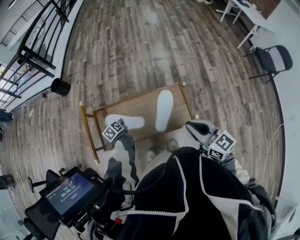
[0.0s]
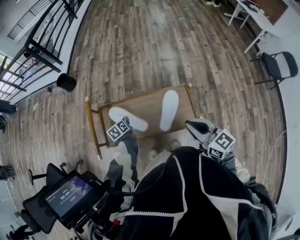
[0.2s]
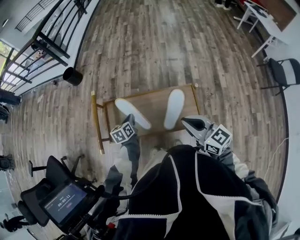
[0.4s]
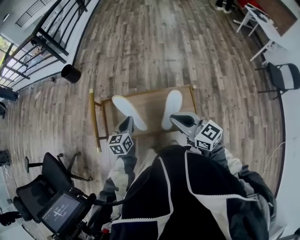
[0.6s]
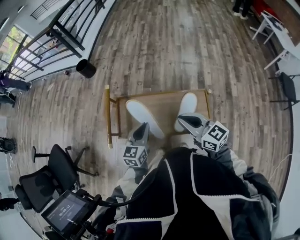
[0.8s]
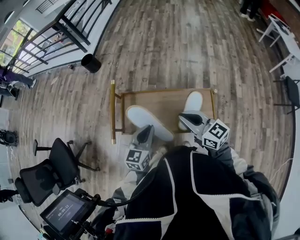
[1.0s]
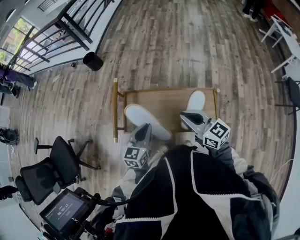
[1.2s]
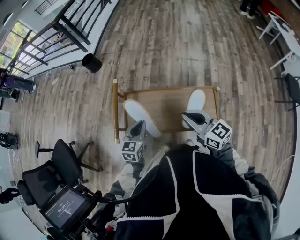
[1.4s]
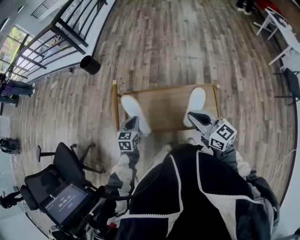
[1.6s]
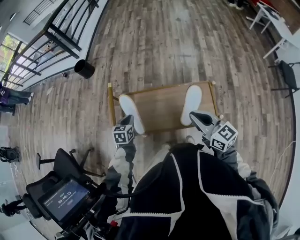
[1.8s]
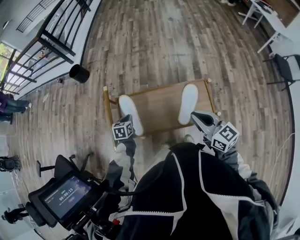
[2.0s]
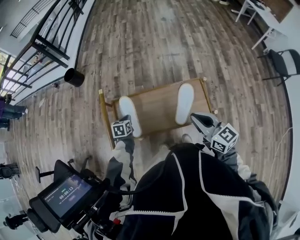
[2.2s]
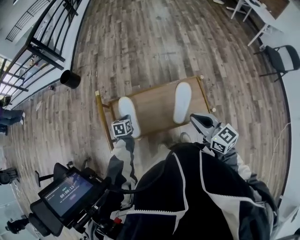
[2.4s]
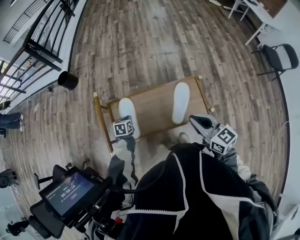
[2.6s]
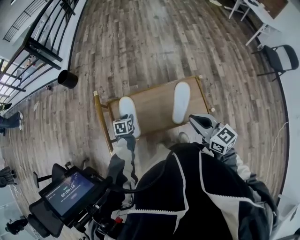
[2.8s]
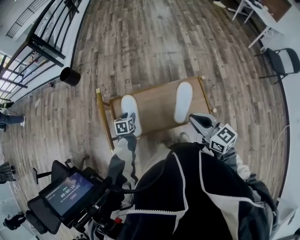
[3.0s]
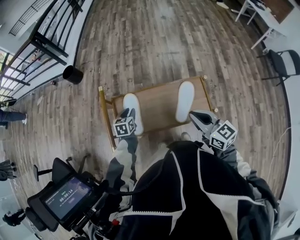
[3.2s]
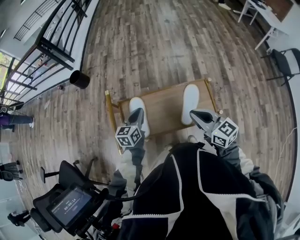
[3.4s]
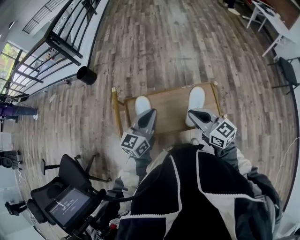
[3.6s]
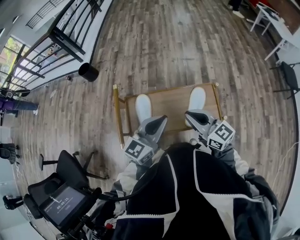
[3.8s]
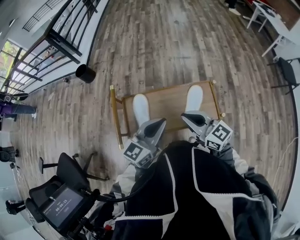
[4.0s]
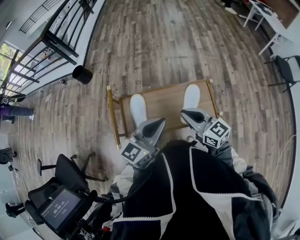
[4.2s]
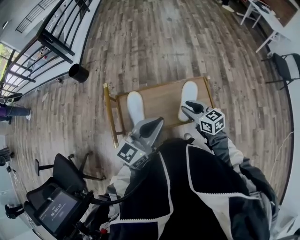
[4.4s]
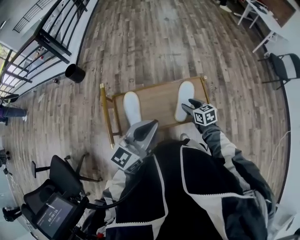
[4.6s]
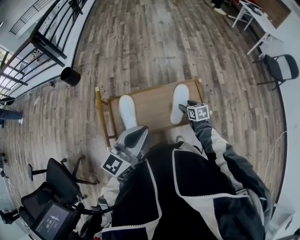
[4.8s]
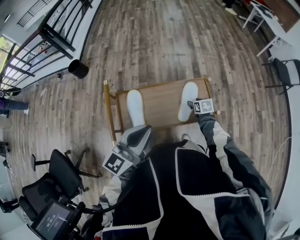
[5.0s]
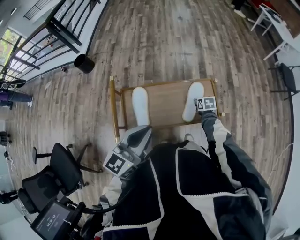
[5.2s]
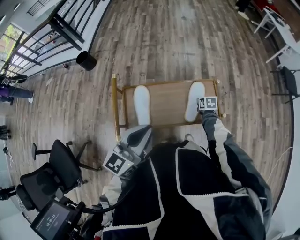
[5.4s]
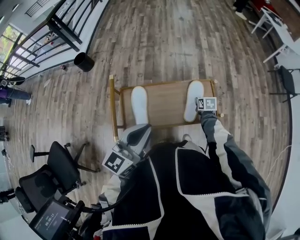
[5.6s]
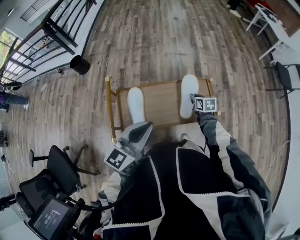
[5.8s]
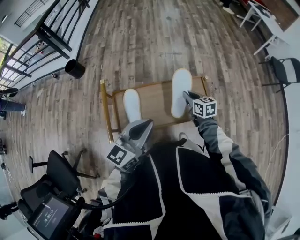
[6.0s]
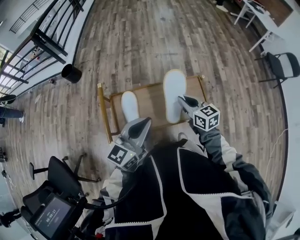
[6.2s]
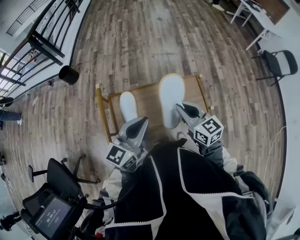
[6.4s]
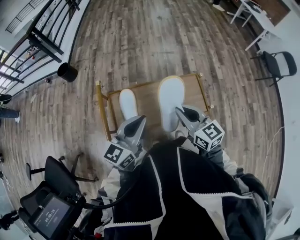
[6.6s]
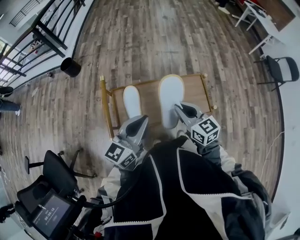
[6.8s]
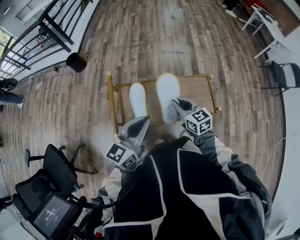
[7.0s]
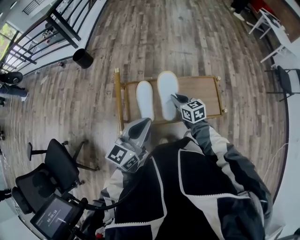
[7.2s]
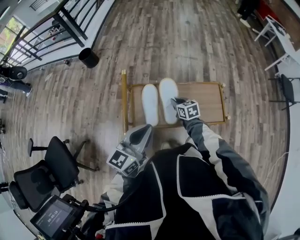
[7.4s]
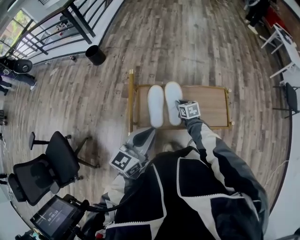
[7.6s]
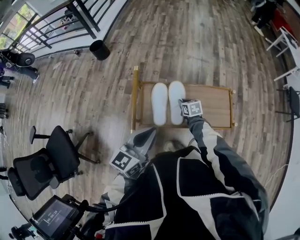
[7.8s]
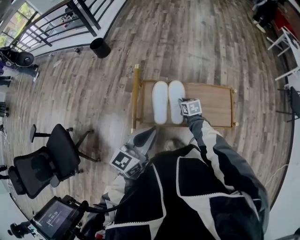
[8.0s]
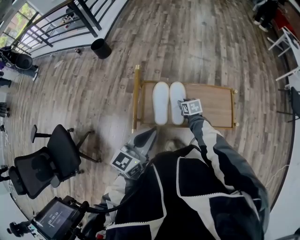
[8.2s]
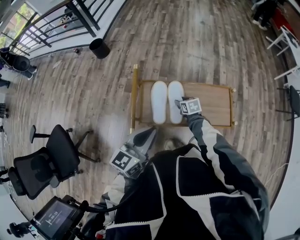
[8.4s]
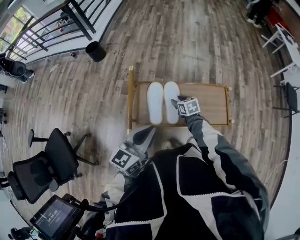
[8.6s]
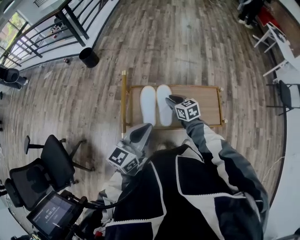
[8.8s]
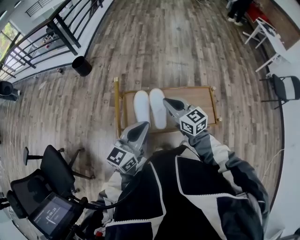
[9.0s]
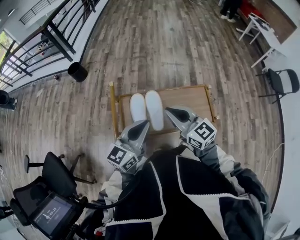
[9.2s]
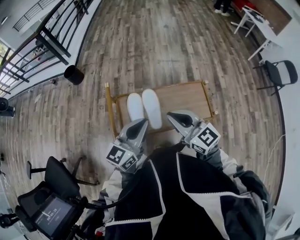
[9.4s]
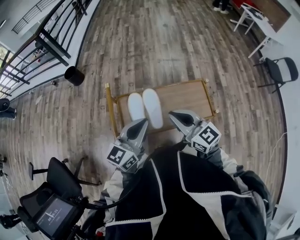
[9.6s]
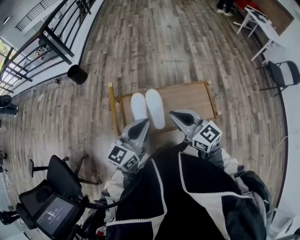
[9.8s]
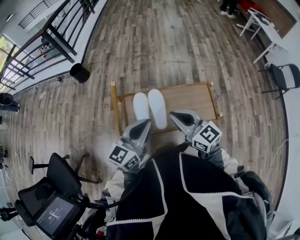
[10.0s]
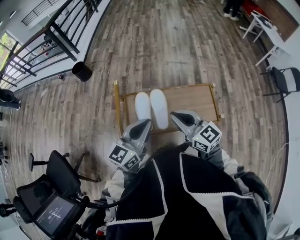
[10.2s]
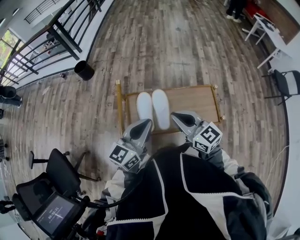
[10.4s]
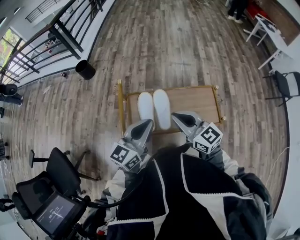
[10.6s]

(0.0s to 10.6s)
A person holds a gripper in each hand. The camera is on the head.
0.0s - 1.6s: The right gripper goes about 15 cm to the left and forward. Meanwhile the left gripper moves upward and to the left, approximately 20 cm, and rotates around the line of its fingers by roughly 40 degrees, clockwise from behind.
1.6s - 3.0s: The left gripper travels downward by some 15 cm, and opens its fingers; the right gripper travels to the right by some 5 cm.
3.0s - 4.6s: The right gripper heads downward and forward, covering some 20 cm, swivels roughly 20 degrees, and opens its fingers, while the left gripper travels upward and to the right by approximately 35 cm, angles its fingers upward, by roughly 50 degrees, and closes.
4.6s - 6.0s: The right gripper reaches about 10 cm downward, then returns, and closes up.
6.0s - 7.6s: The right gripper is displaced to the left and downward by roughly 20 cm, while the left gripper moves to the left, roughly 10 cm.
7.6s - 9.0s: The right gripper is displaced upward by some 25 cm, tips its fingers upward by about 30 degrees, and opens and closes again.
9.0s - 10.6s: The right gripper travels backward and upward by some 10 cm.

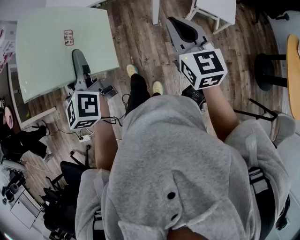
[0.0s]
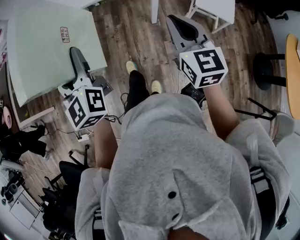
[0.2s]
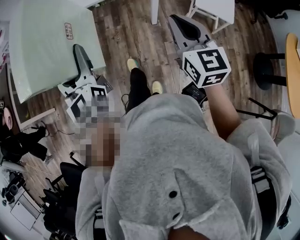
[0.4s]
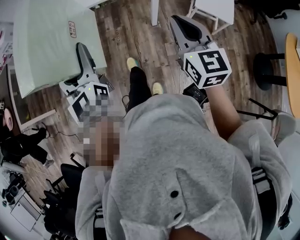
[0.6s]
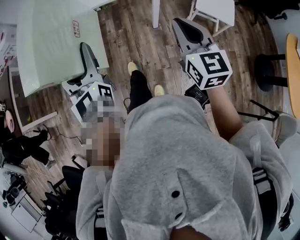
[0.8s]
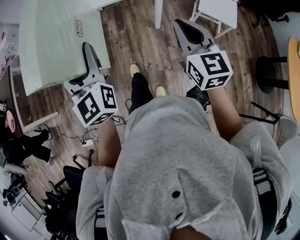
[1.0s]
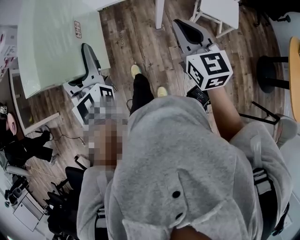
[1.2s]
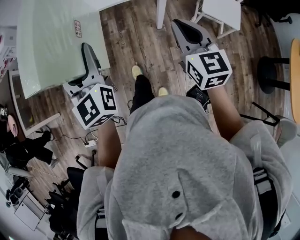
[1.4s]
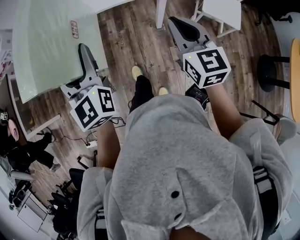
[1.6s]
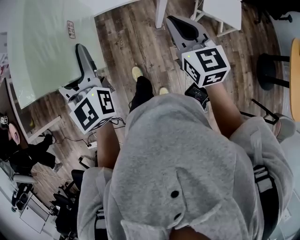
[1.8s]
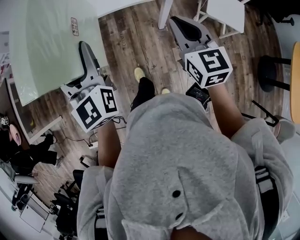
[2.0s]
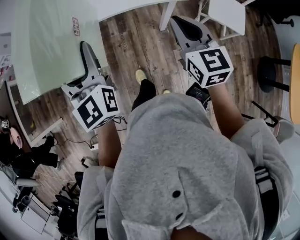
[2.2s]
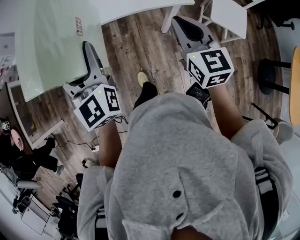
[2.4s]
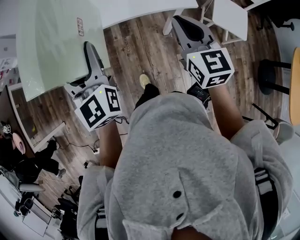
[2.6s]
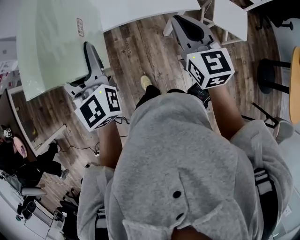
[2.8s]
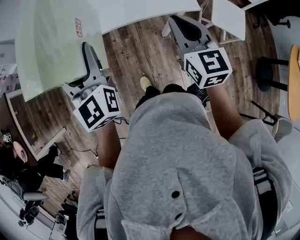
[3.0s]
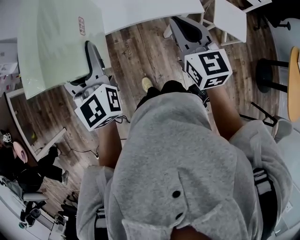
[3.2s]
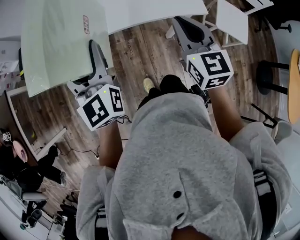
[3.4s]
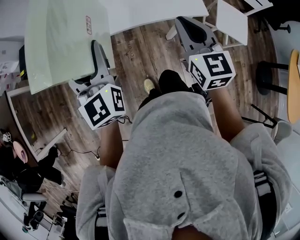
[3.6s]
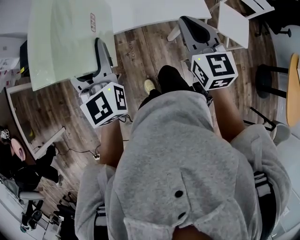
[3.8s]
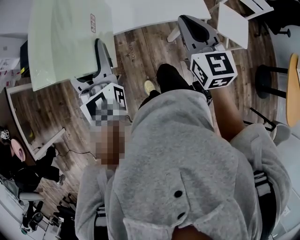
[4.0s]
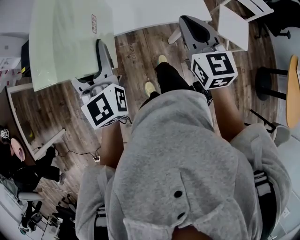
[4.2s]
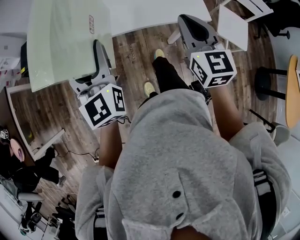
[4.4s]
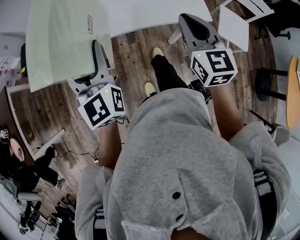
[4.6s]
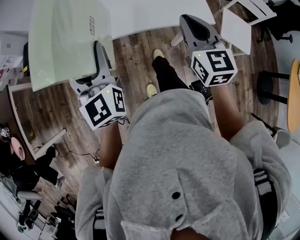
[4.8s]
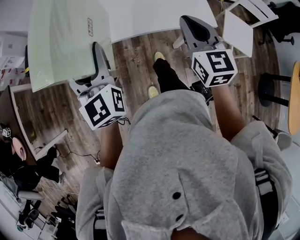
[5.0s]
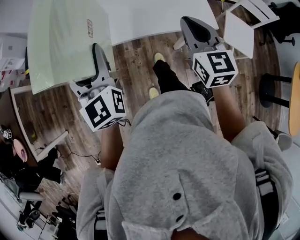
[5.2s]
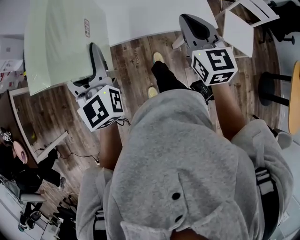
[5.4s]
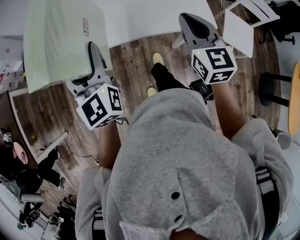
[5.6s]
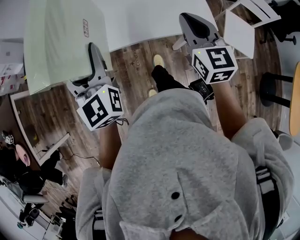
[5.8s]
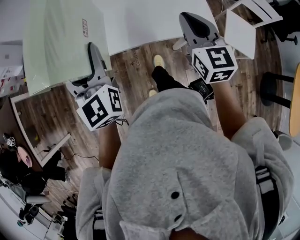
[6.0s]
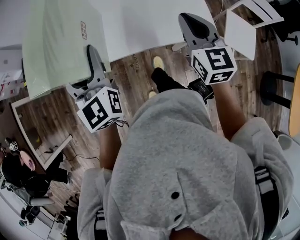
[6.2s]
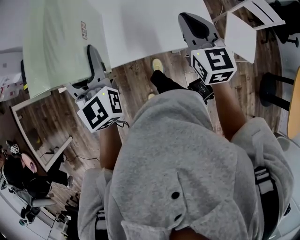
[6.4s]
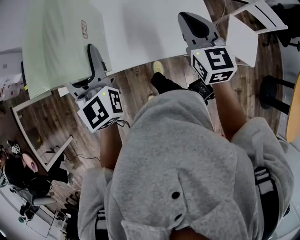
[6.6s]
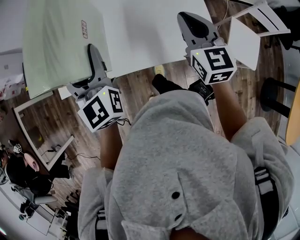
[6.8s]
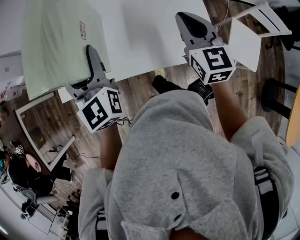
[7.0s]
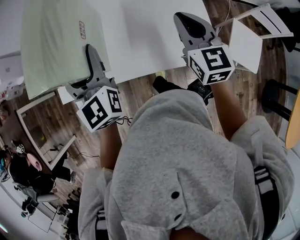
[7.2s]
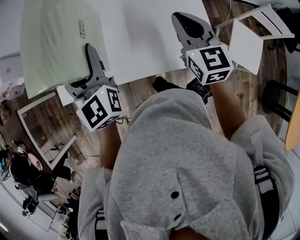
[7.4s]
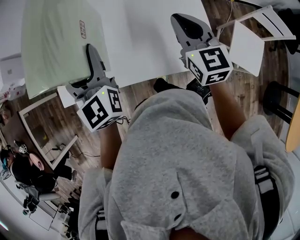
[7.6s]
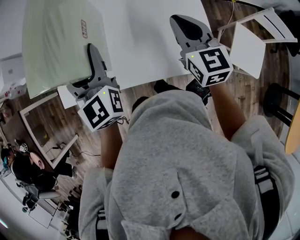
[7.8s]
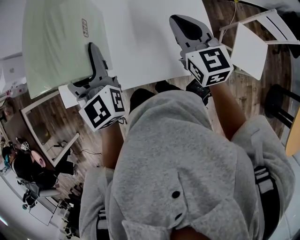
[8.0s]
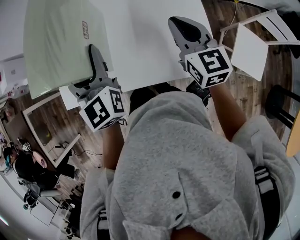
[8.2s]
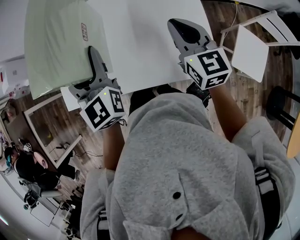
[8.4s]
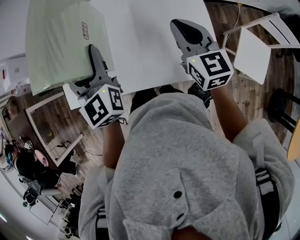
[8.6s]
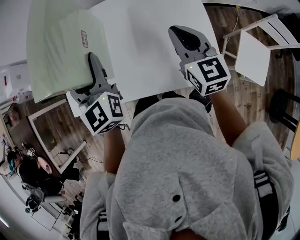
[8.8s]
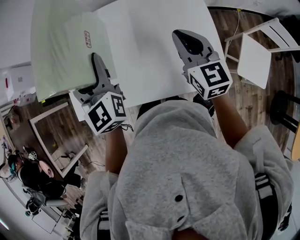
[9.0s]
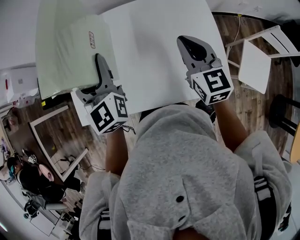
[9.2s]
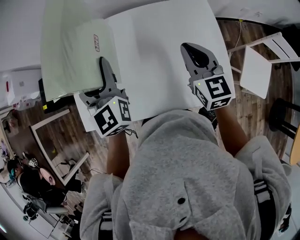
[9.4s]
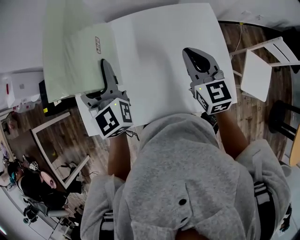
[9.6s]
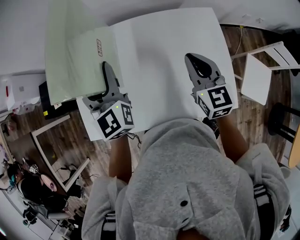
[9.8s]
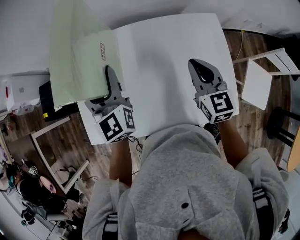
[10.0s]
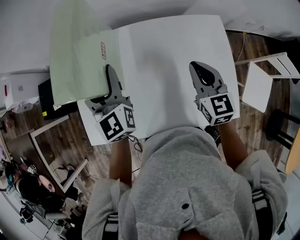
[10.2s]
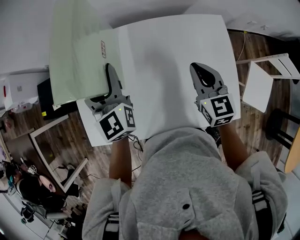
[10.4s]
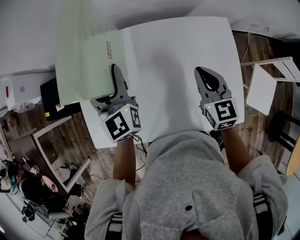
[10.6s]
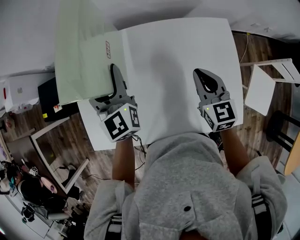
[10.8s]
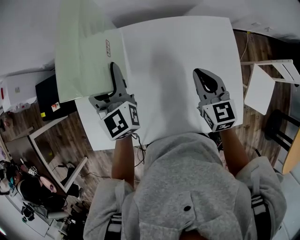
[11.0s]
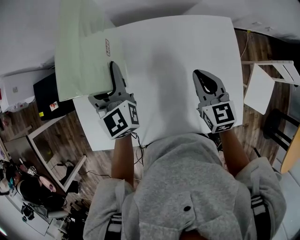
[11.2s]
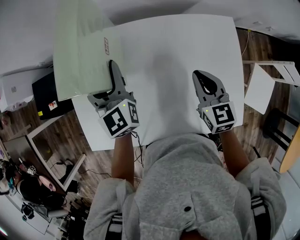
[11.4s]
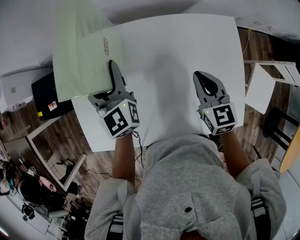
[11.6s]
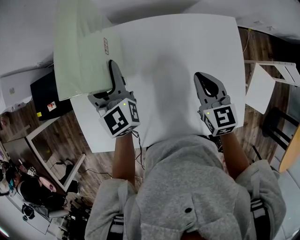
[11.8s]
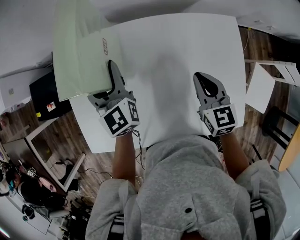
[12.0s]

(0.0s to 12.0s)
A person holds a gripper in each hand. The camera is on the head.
0.0s - 1.6s: Both grippers move forward, roughly 10 cm. The left gripper rotates approximately 30 degrees.
1.6s - 3.0s: The left gripper goes approximately 20 cm forward. The right gripper is displaced forward and to the left by approximately 20 cm.
3.0s - 4.4s: There are only small adjustments of the grippers.
4.4s - 6.0s: The grippers both shift forward by about 10 cm.
6.0s - 7.6s: The two grippers go about 20 cm forward and to the right.
7.6s - 9.0s: The left gripper is displaced forward by approximately 5 cm, while the right gripper ends up some 5 cm from where it was.
9.0s - 10.4s: The left gripper is displaced forward by about 15 cm; the right gripper moves forward and downward, about 10 cm.
10.4s - 12.0s: Both grippers move downward, approximately 5 cm.

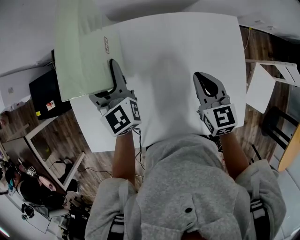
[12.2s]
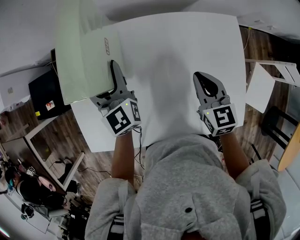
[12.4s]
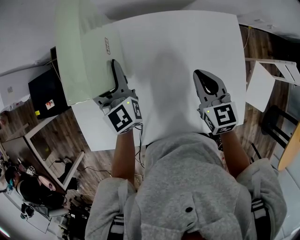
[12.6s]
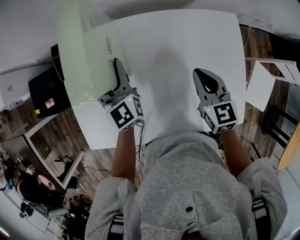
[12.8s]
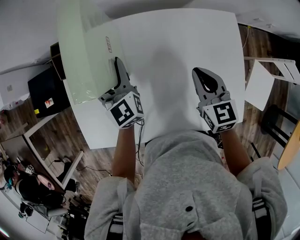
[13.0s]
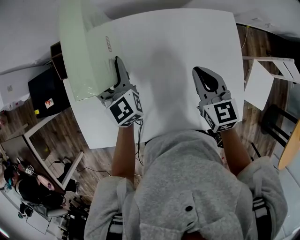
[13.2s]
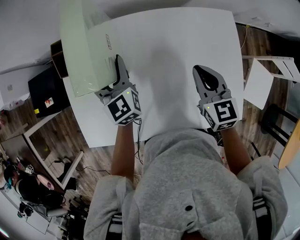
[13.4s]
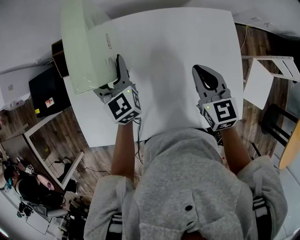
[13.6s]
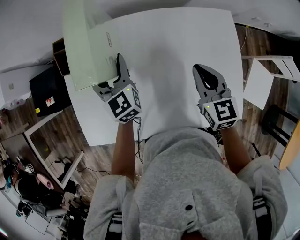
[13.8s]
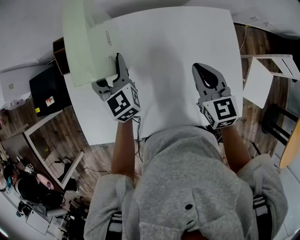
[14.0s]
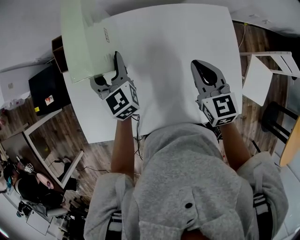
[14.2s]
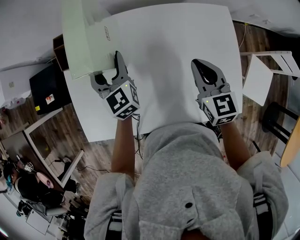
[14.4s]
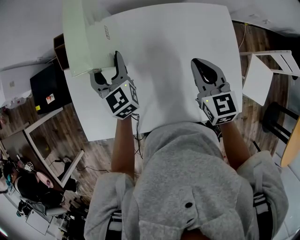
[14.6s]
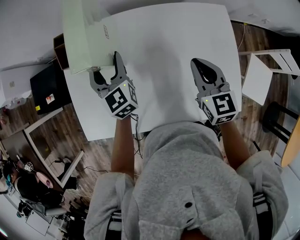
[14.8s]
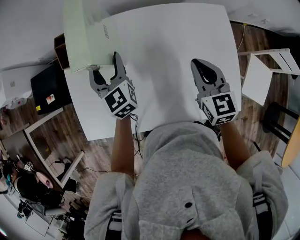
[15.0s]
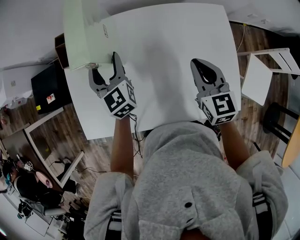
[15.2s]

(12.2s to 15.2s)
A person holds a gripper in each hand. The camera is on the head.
12.2s - 13.8s: The grippers make only small movements.
13.8s - 15.2s: The right gripper ends up some 5 cm from where it was.
